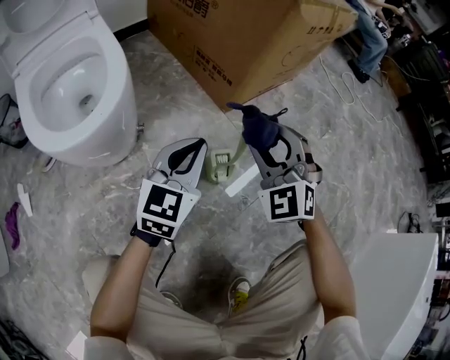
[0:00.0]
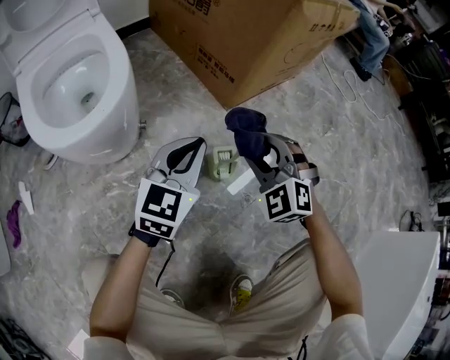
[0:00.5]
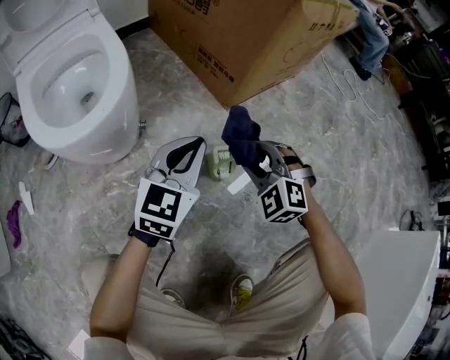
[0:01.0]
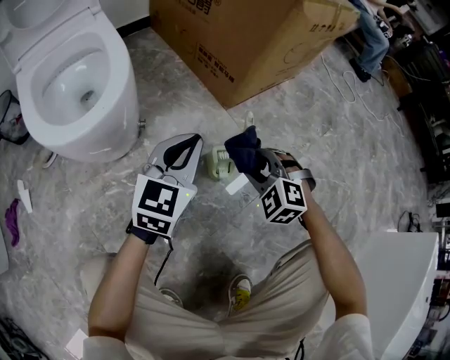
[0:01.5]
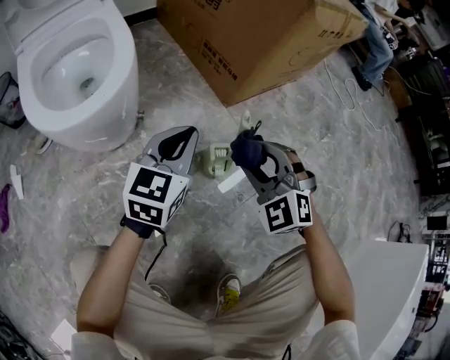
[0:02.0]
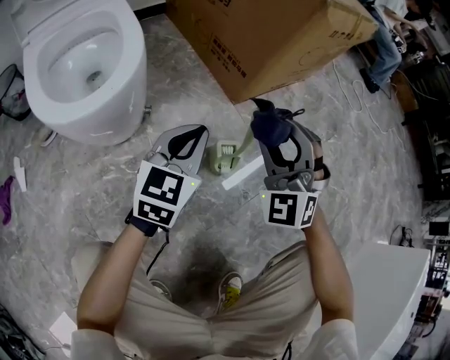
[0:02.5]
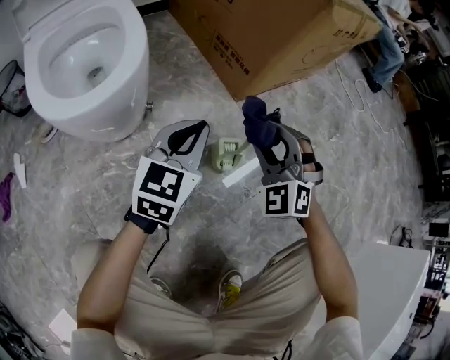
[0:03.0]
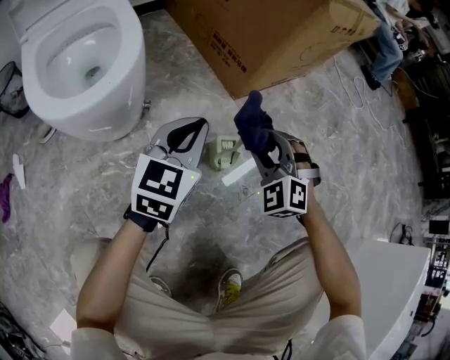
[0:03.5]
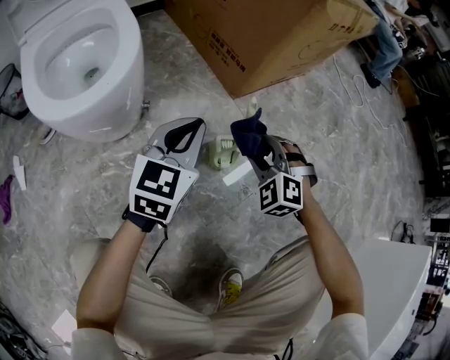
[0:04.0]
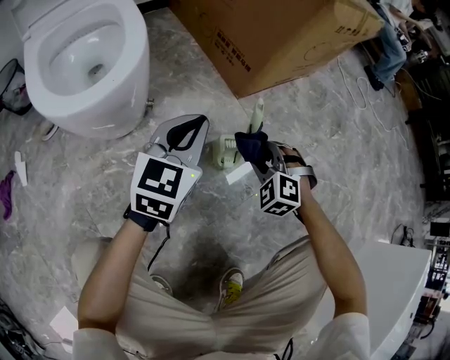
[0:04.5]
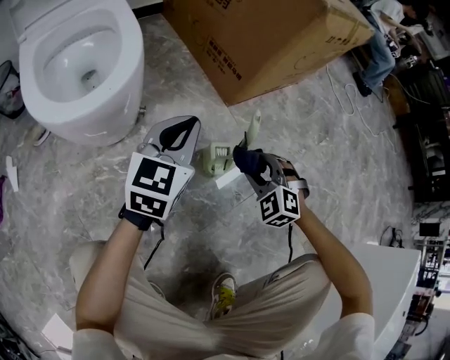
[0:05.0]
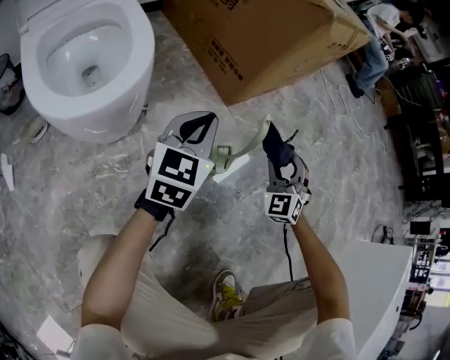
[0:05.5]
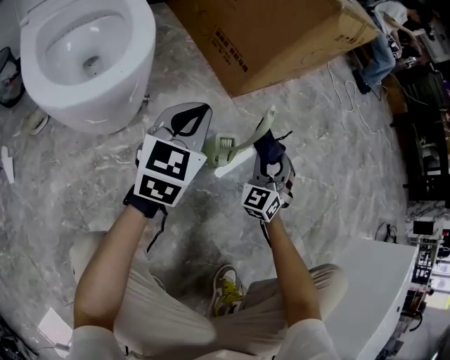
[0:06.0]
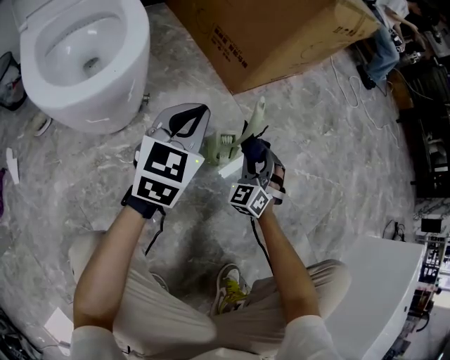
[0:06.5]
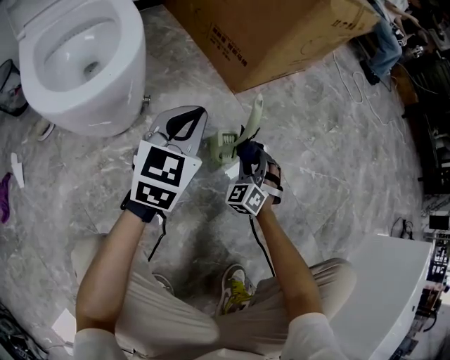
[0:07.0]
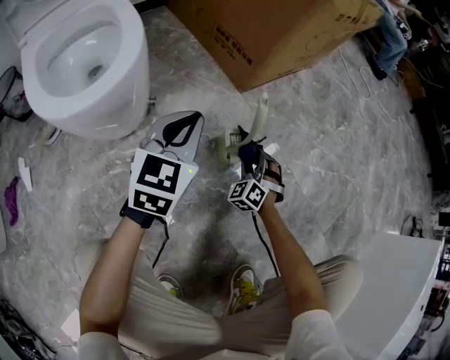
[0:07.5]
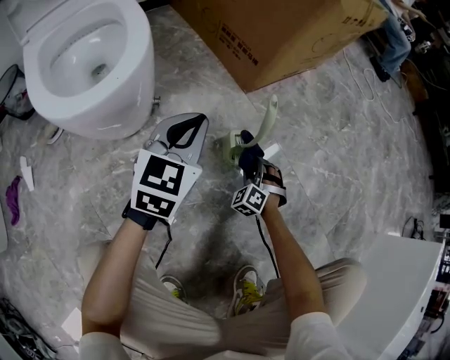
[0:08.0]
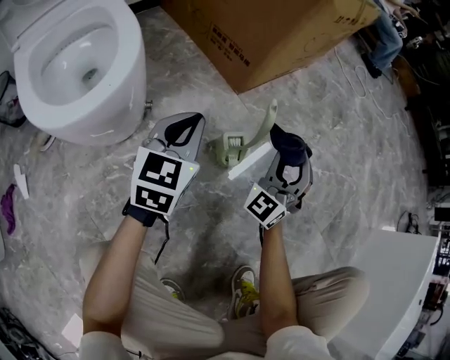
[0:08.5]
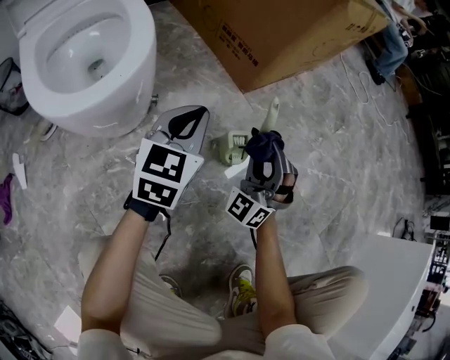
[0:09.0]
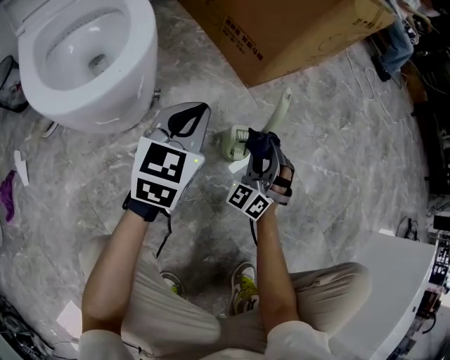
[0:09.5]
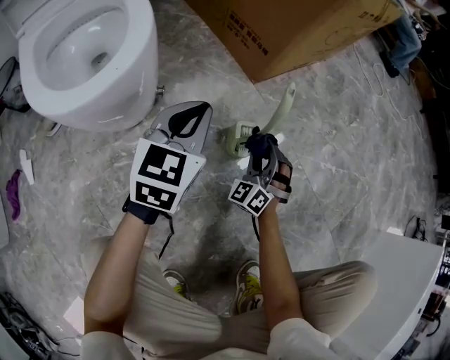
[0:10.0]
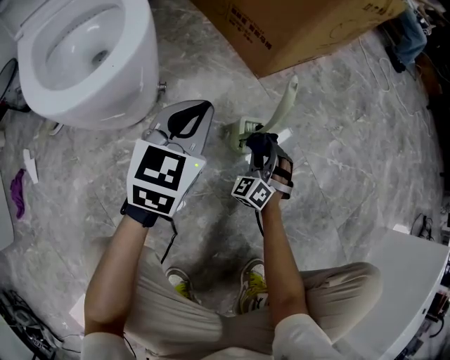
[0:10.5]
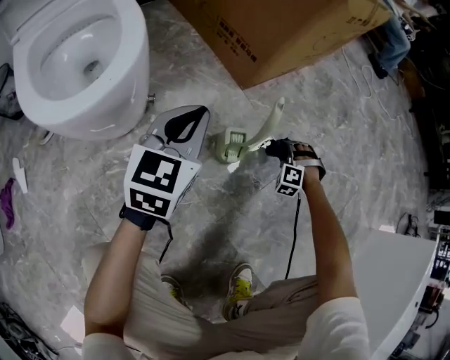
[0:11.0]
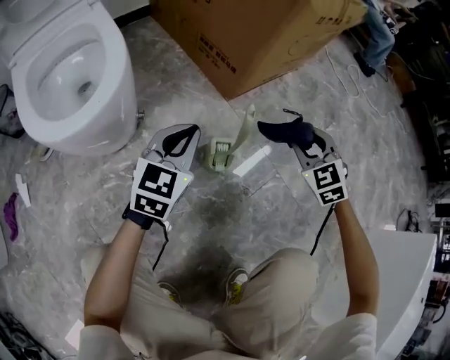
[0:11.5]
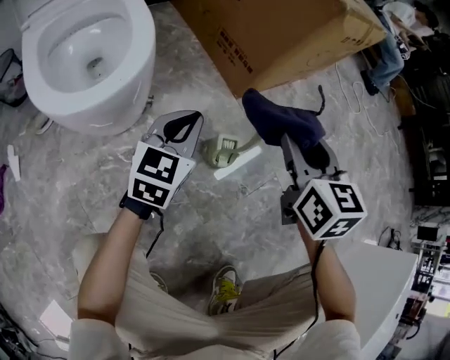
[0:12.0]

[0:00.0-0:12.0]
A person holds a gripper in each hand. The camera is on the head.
0:00.0 to 0:02.0: The right gripper is displaced downward by some 5 cm.
0:02.0 to 0:04.0: The right gripper shifts approximately 10 cm downward.
0:04.0 to 0:06.0: The right gripper goes about 5 cm to the right, and turns by about 40 degrees.
0:06.0 to 0:08.0: The right gripper goes some 20 cm downward, and turns by approximately 30 degrees.
0:08.0 to 0:10.0: The right gripper goes some 10 cm upward, and changes its angle by roughly 30 degrees.
0:10.0 to 0:12.0: The right gripper goes approximately 30 cm upward, and rotates around the line of its fingers by about 50 degrees, clockwise from behind.

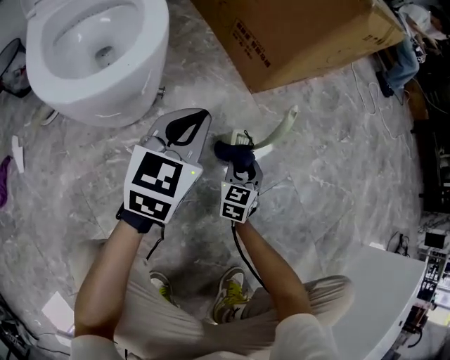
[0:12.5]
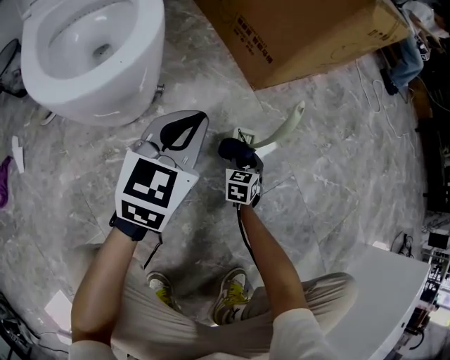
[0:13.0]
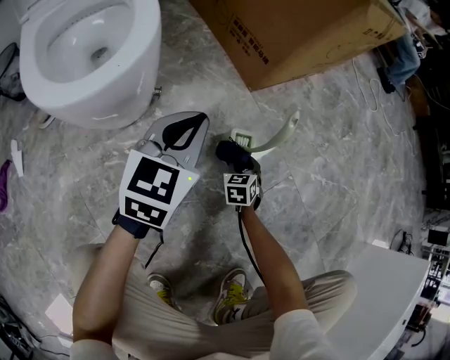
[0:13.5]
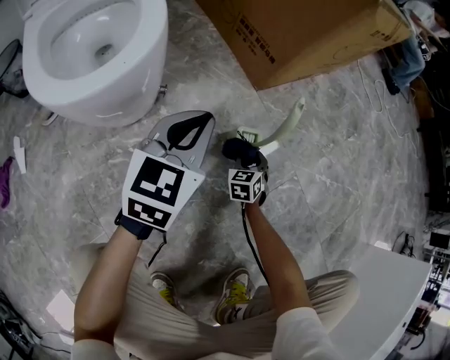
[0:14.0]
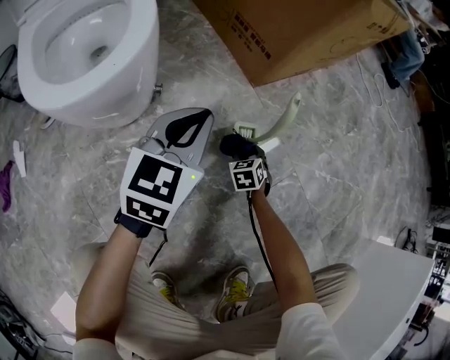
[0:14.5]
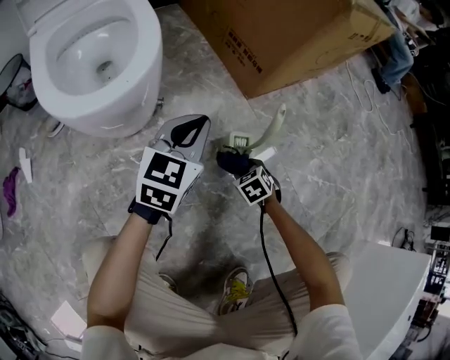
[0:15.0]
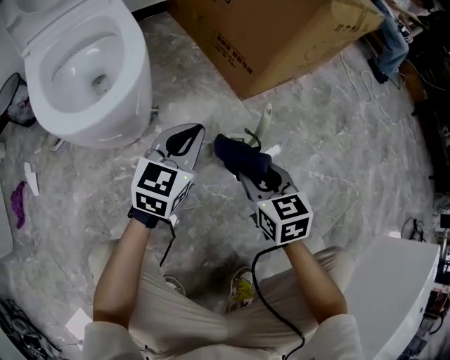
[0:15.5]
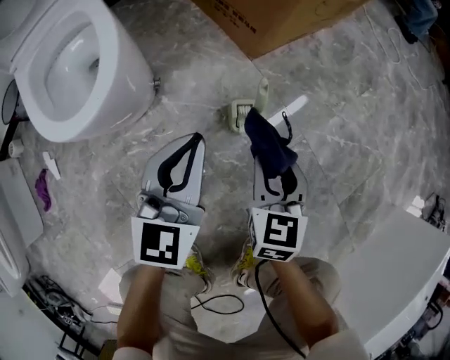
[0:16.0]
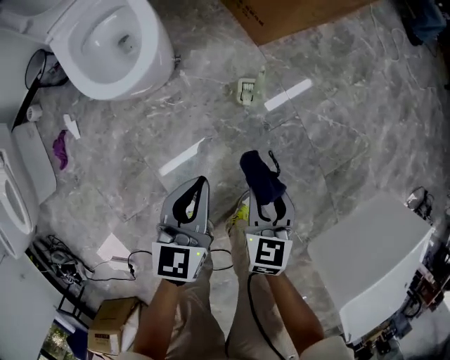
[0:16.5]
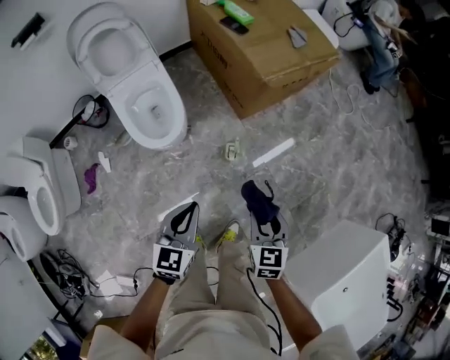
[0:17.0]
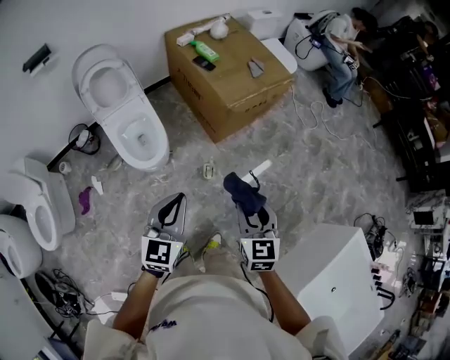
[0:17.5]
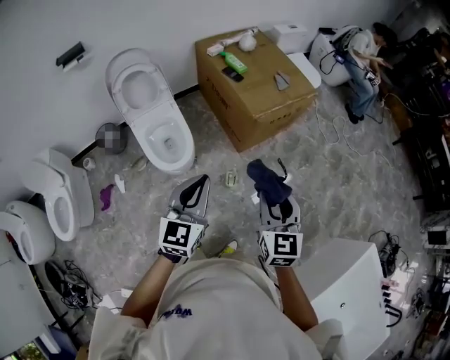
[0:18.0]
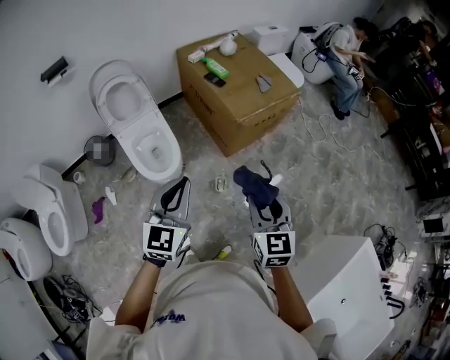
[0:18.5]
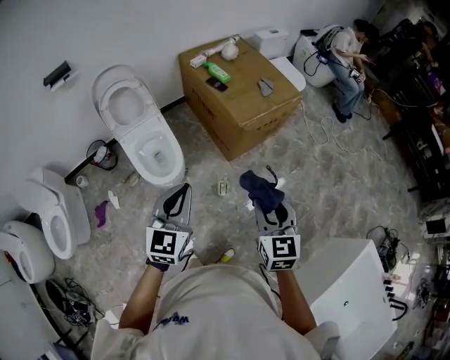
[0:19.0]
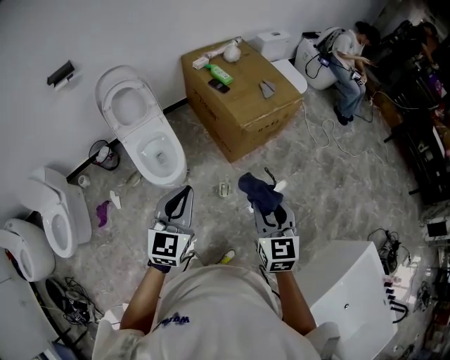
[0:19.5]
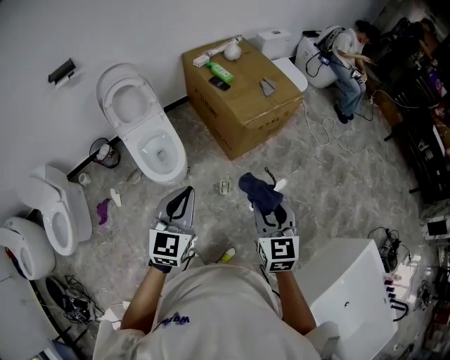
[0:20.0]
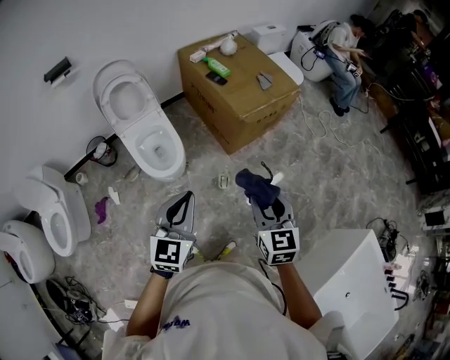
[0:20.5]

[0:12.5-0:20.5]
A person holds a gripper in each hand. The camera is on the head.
0:12.5 to 0:14.5: The right gripper is displaced downward by some 10 cm, and changes its angle by roughly 30 degrees.
0:14.5 to 0:16.5: The right gripper shifts approximately 50 cm upward and backward, and changes its angle by some 20 degrees. Meanwhile the left gripper goes approximately 30 cm upward and backward, and rotates about 20 degrees.
0:16.5 to 0:18.5: The grippers both shift upward by about 60 cm. The left gripper changes its angle by about 30 degrees. The right gripper rotates about 20 degrees.
0:18.5 to 0:20.5: The left gripper travels backward by approximately 5 cm.

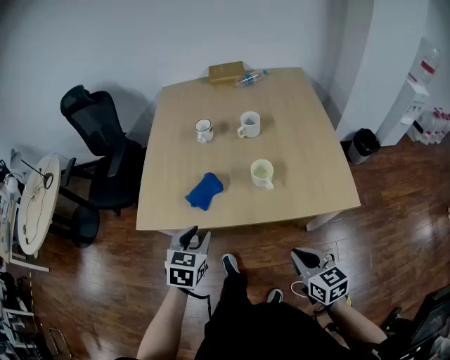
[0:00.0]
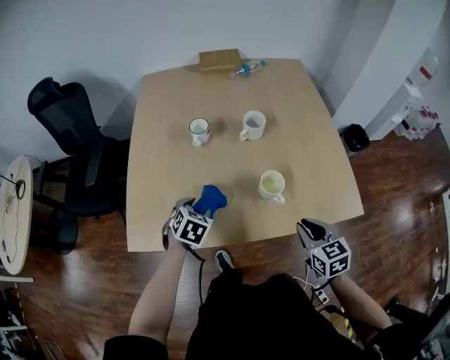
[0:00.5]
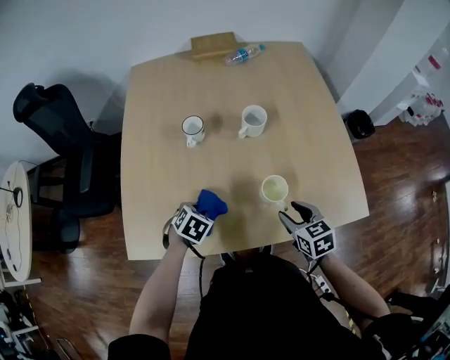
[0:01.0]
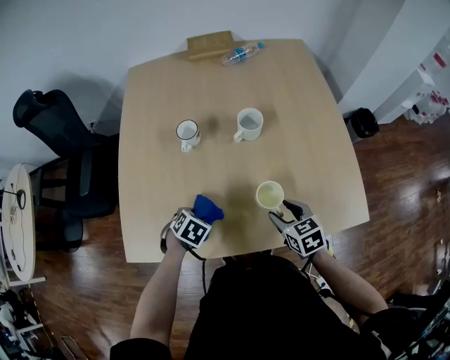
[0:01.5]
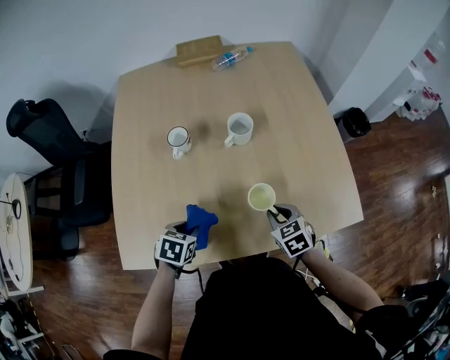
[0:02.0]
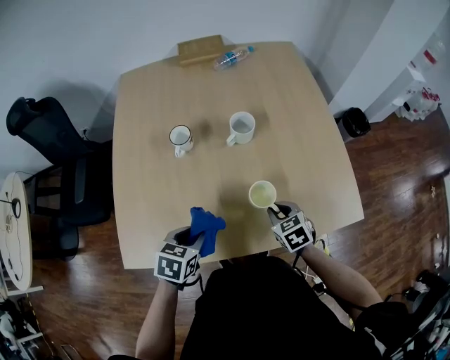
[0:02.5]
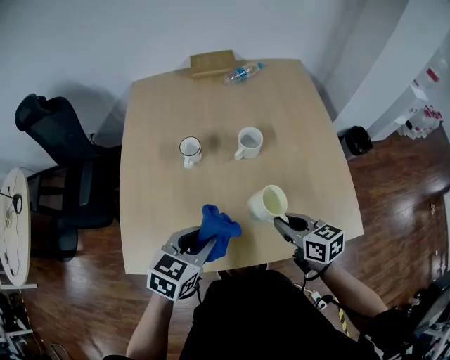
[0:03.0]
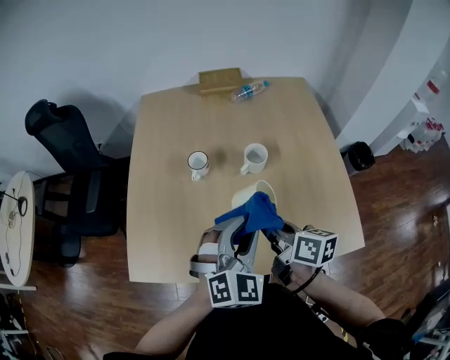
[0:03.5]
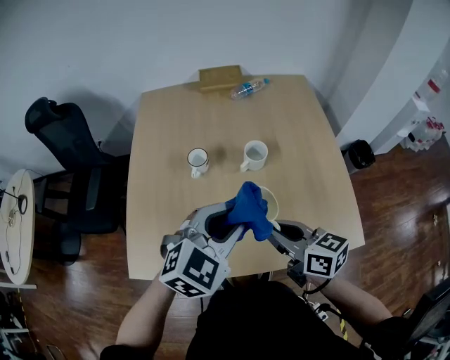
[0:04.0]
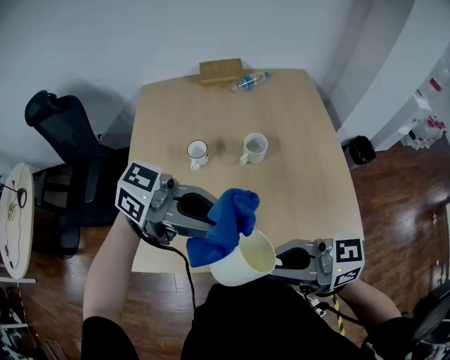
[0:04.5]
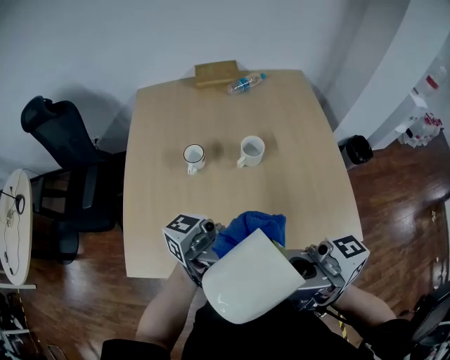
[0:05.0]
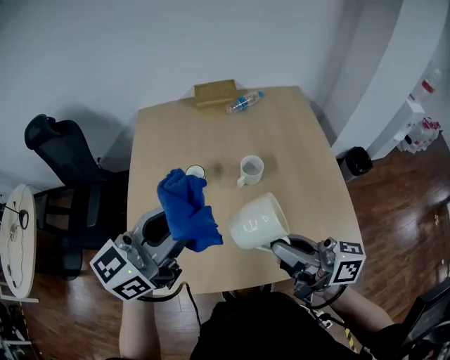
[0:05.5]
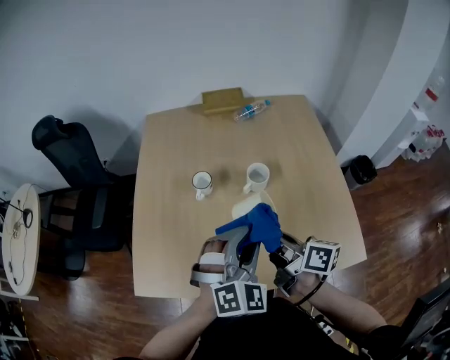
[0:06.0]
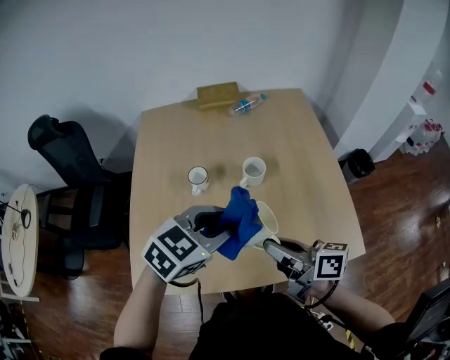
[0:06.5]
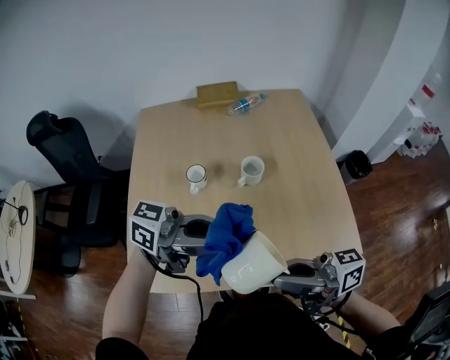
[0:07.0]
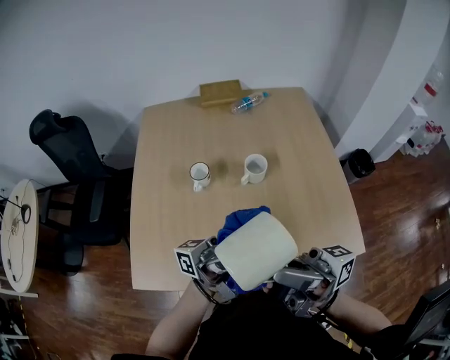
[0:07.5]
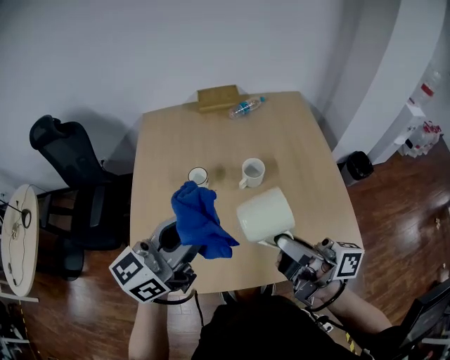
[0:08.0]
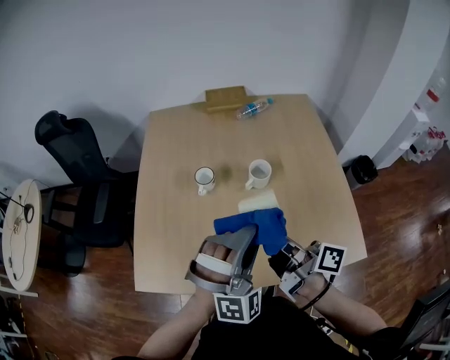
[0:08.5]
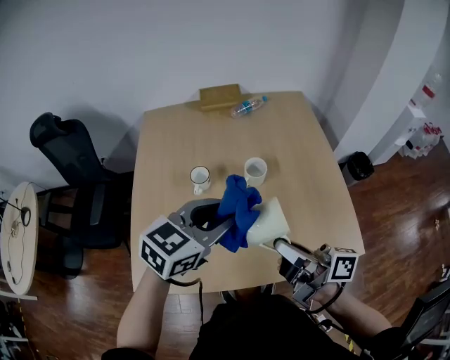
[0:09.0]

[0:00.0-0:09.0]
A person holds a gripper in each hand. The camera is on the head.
0:00.0 to 0:02.0: The left gripper moves approximately 20 cm, and rotates approximately 30 degrees, while the right gripper changes place by roughly 30 cm, changes its angle by roughly 30 degrees, and opens and closes again.
0:02.0 to 0:04.5: The grippers both shift upward by roughly 30 cm. The right gripper tips its fingers upward by approximately 60 degrees. Meanwhile the left gripper tips its fingers upward by some 60 degrees.
0:04.5 to 0:07.0: The right gripper swings up and down, approximately 20 cm each way, with 2 reversals, and swivels some 20 degrees; the left gripper moves up and down over some 15 cm, changing direction 2 times.
0:07.0 to 0:09.0: The right gripper moves about 10 cm, and turns by approximately 30 degrees; the left gripper changes place by roughly 10 cm, and tilts its fingers approximately 30 degrees downward.
